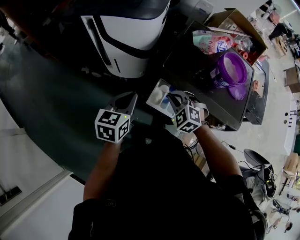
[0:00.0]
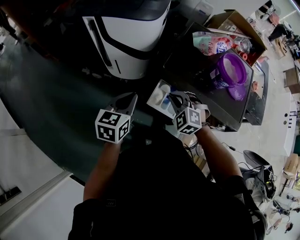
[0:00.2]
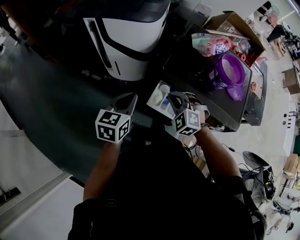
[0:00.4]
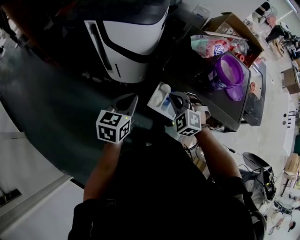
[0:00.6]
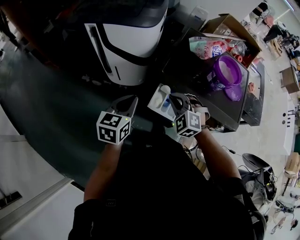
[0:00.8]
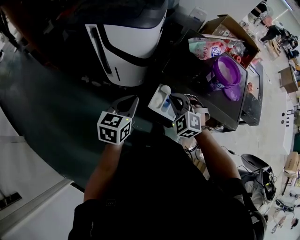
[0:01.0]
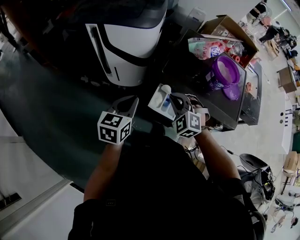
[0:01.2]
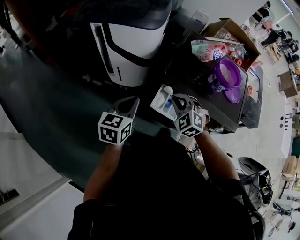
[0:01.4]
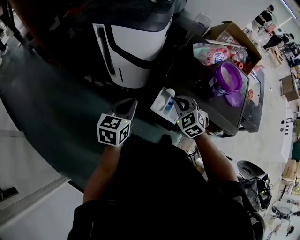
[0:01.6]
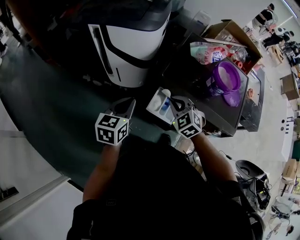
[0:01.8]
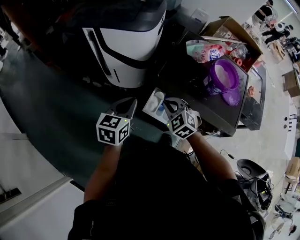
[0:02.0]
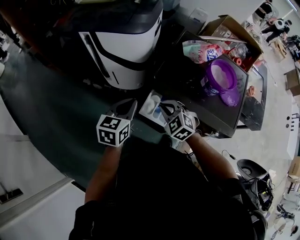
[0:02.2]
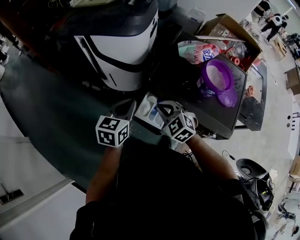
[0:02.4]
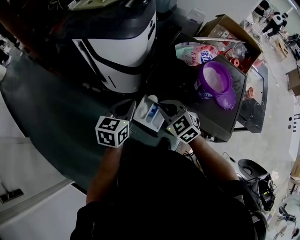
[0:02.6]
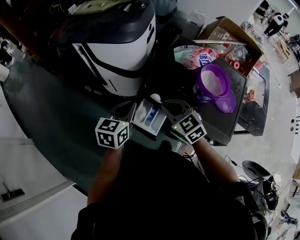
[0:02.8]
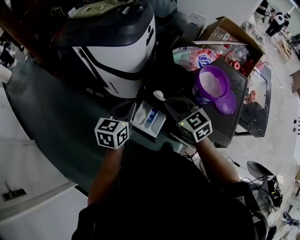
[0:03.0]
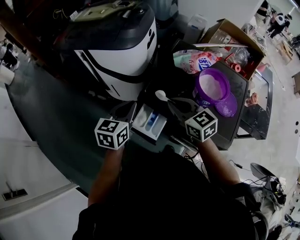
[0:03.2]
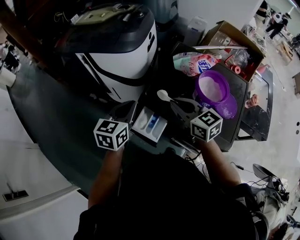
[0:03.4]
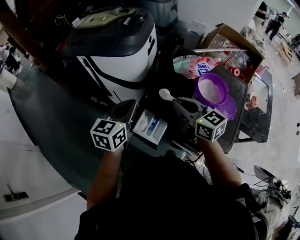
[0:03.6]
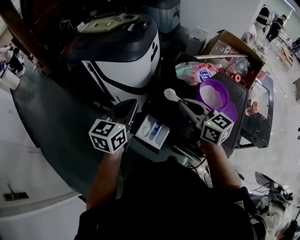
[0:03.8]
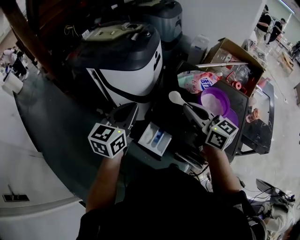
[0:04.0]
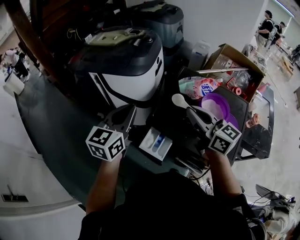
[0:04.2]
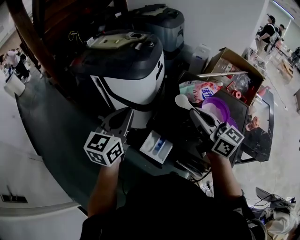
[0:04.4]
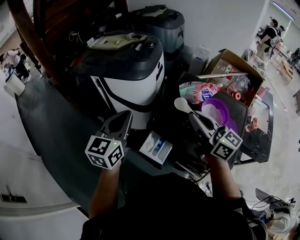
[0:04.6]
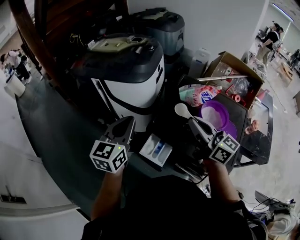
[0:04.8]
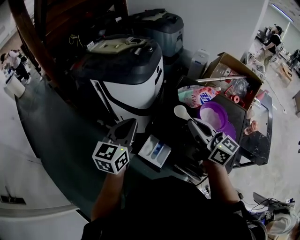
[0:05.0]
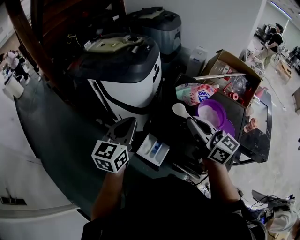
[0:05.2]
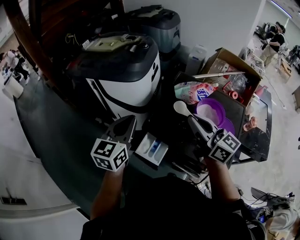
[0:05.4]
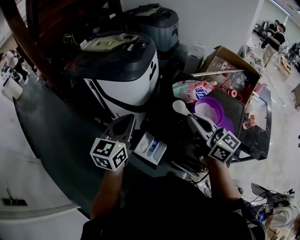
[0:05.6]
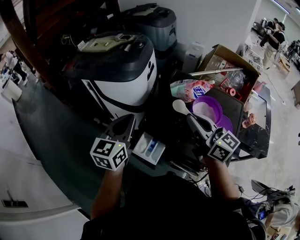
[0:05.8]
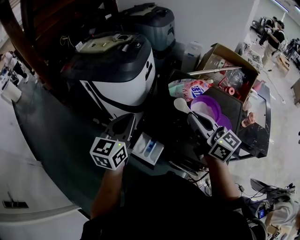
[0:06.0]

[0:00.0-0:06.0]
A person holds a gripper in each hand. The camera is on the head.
0:00.0 to 0:01.6: The grippers make only small movements.
0:01.6 to 0:03.0: The left gripper is displaced to the right and forward by approximately 15 cm, while the right gripper travels to the right and upward by about 10 cm, and rotates roughly 30 degrees.
0:03.0 to 0:04.4: The two grippers go roughly 15 cm upward. The right gripper tips its fingers upward by roughly 30 degrees.
0:04.4 to 0:06.0: Both grippers move to the right, approximately 5 cm.

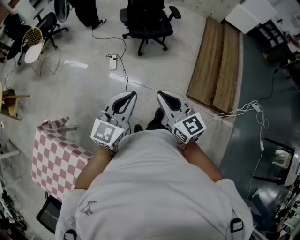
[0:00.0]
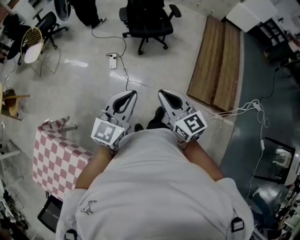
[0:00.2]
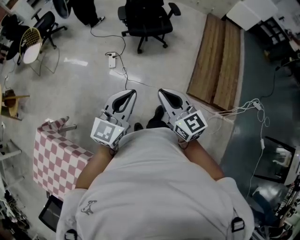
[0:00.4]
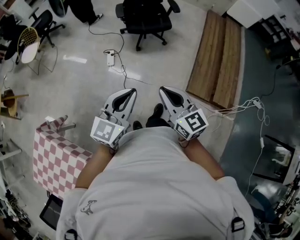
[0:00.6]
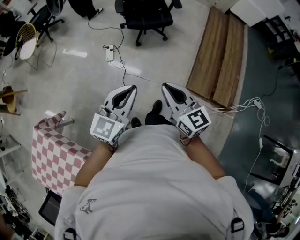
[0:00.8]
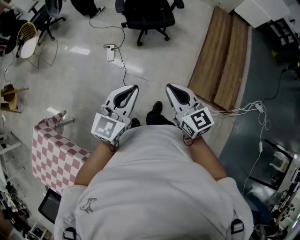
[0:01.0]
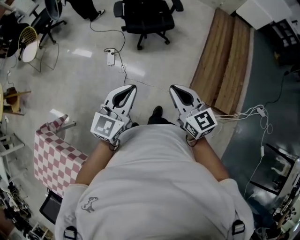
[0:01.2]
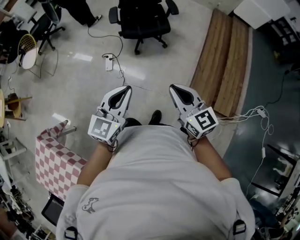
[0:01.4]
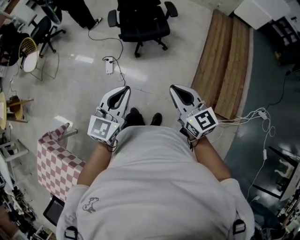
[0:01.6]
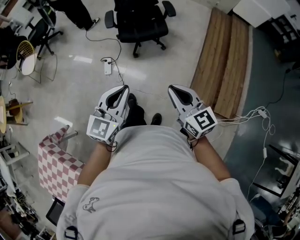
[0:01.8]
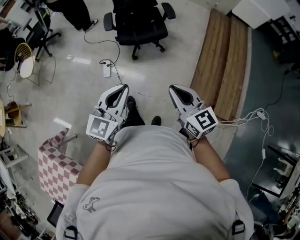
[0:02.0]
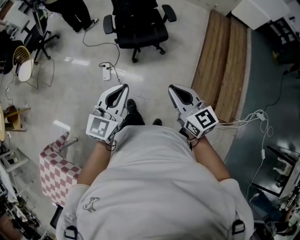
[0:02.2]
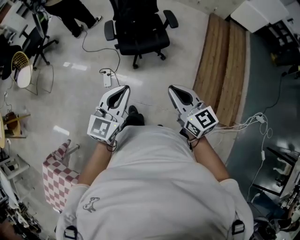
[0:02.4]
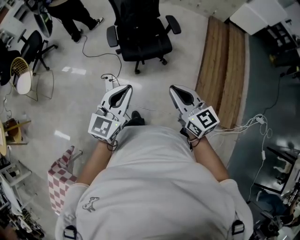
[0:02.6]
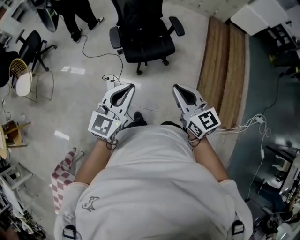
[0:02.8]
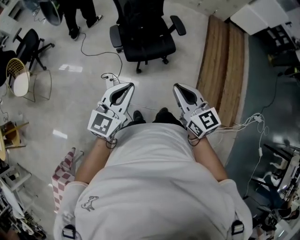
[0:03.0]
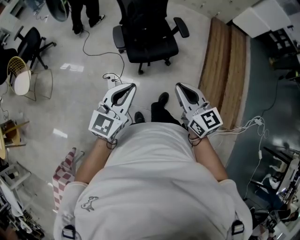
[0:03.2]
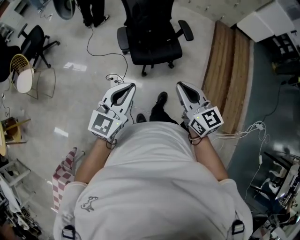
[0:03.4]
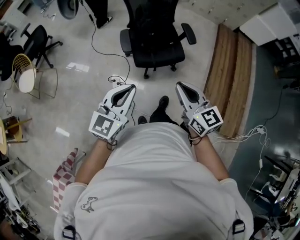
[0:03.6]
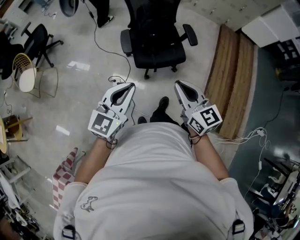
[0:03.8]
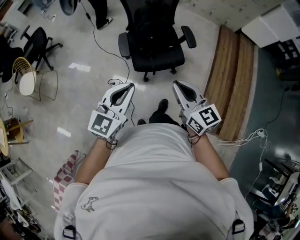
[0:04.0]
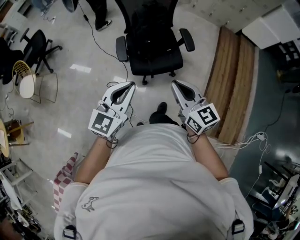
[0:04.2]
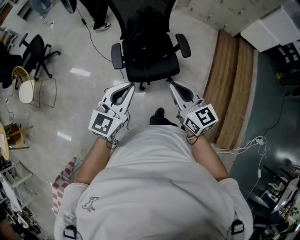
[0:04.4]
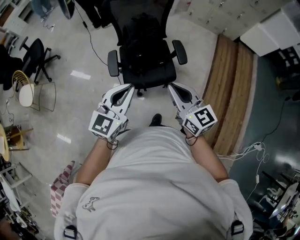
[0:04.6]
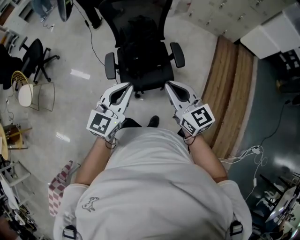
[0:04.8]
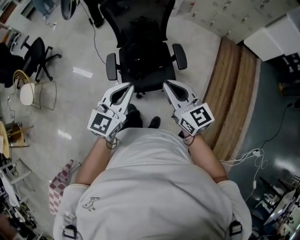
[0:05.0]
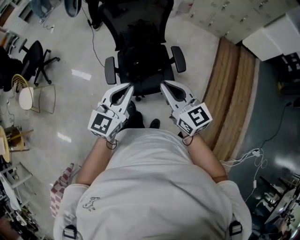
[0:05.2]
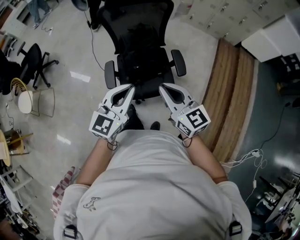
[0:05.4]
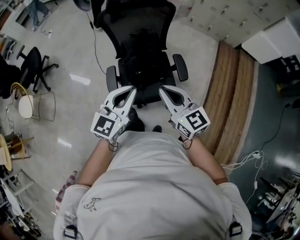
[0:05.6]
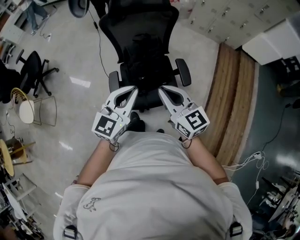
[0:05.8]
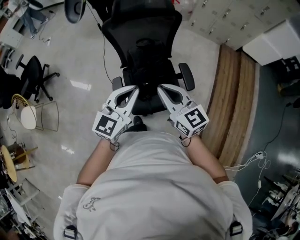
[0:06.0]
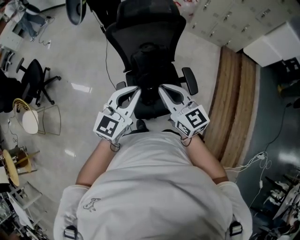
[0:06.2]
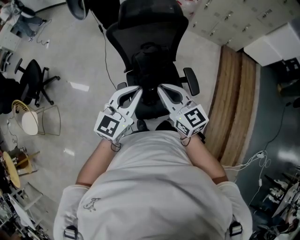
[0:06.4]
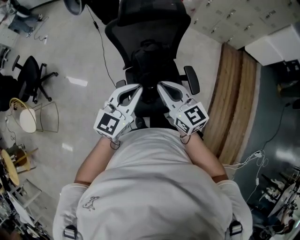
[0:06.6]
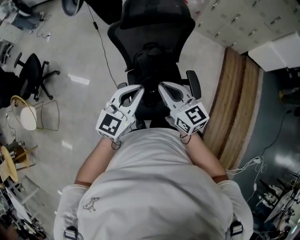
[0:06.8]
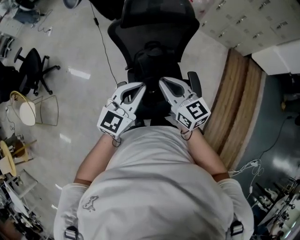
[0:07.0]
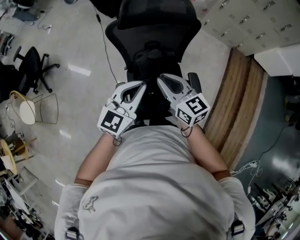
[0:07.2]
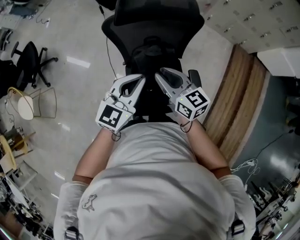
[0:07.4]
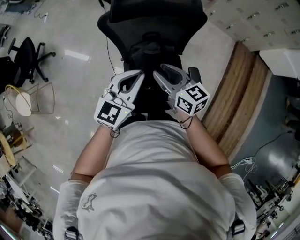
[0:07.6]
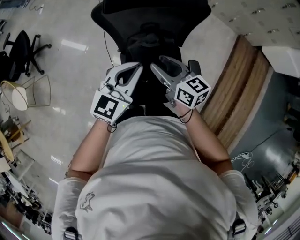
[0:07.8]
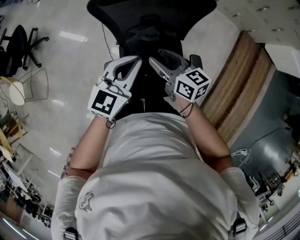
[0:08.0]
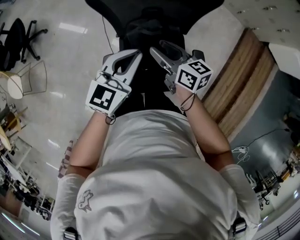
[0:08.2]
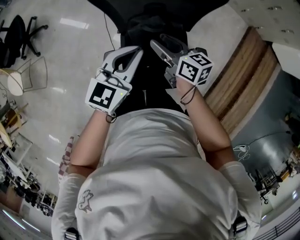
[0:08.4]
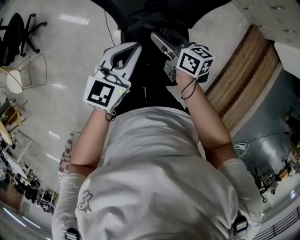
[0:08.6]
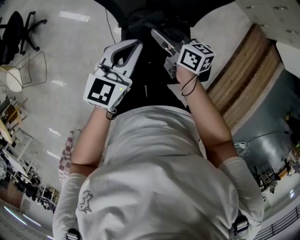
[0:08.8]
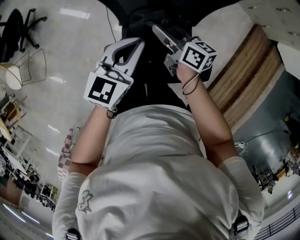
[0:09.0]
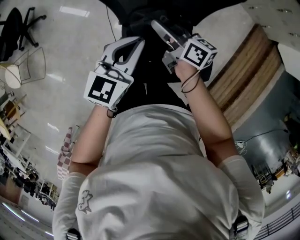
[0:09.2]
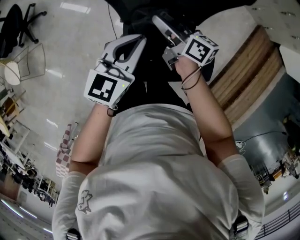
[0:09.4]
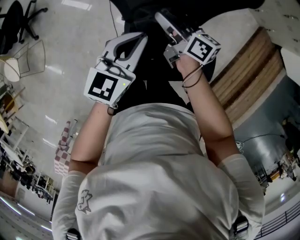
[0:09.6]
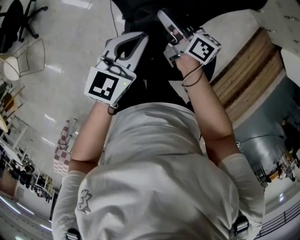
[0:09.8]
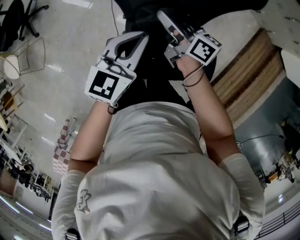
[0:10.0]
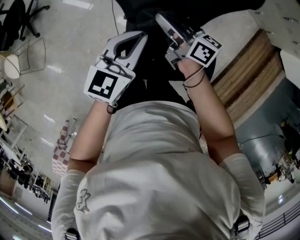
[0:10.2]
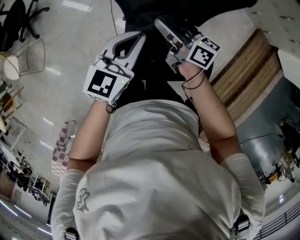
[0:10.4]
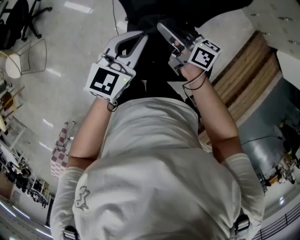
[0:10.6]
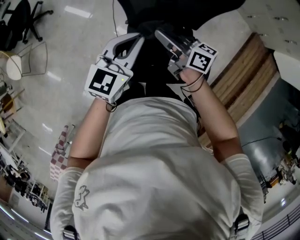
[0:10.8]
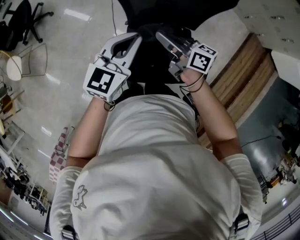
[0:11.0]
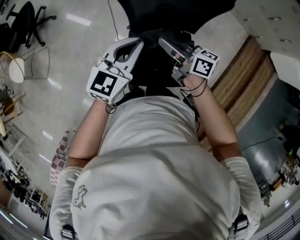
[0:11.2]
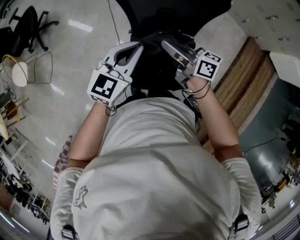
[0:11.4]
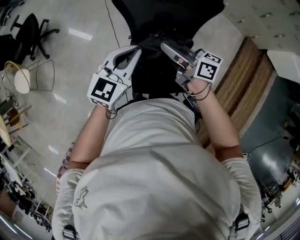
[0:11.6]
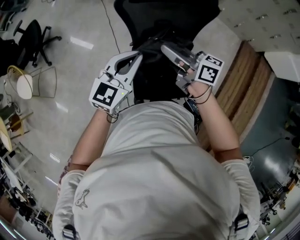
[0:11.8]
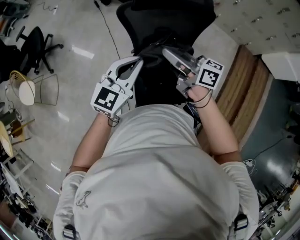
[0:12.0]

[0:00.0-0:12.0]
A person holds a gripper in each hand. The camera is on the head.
0:00.0 to 0:01.6: The right gripper moves to the right and forward, approximately 30 cm. Meanwhile the left gripper is displaced forward and to the right by approximately 25 cm.
0:01.6 to 0:03.0: The grippers both shift forward and to the left by about 30 cm.
0:03.0 to 0:04.4: Both grippers move forward, some 20 cm.
0:04.4 to 0:06.0: The grippers both shift forward by approximately 25 cm.
0:06.0 to 0:07.6: The right gripper moves forward and downward, about 25 cm, swivels approximately 20 degrees, and opens up, while the left gripper travels forward by some 20 cm.
0:07.6 to 0:09.0: The two grippers go roughly 15 cm downward and forward. The right gripper turns by about 20 degrees.
0:09.0 to 0:10.4: The right gripper shifts by roughly 5 cm, and closes up.
0:10.4 to 0:12.0: The right gripper shifts roughly 20 cm upward and backward. Meanwhile the left gripper goes approximately 15 cm upward, backward and to the left.

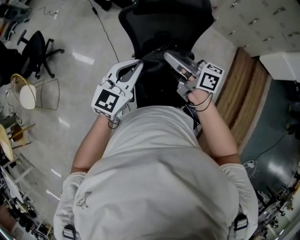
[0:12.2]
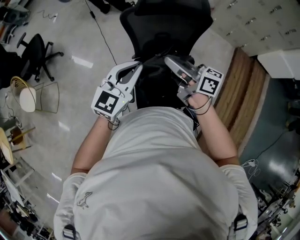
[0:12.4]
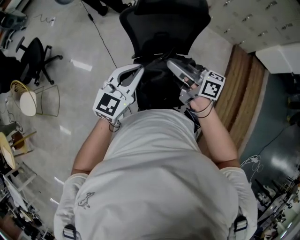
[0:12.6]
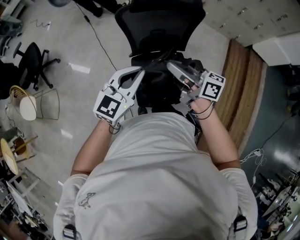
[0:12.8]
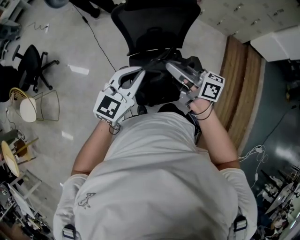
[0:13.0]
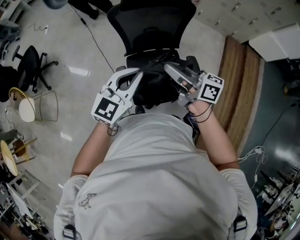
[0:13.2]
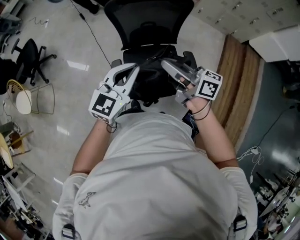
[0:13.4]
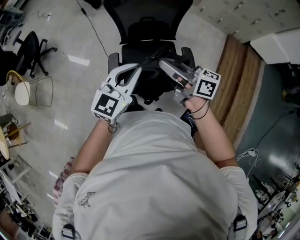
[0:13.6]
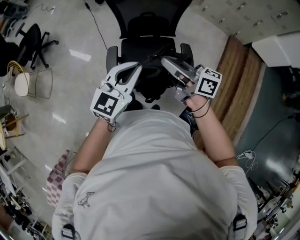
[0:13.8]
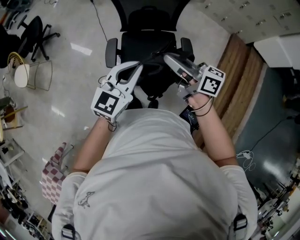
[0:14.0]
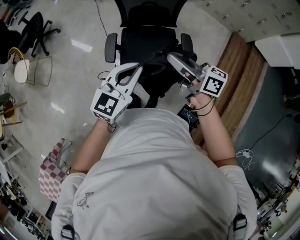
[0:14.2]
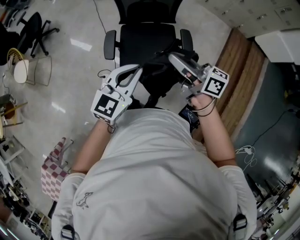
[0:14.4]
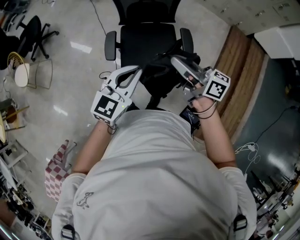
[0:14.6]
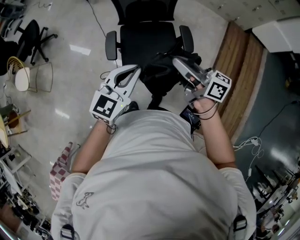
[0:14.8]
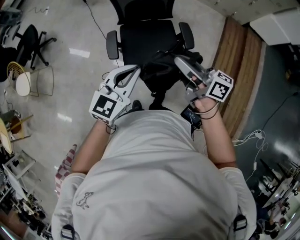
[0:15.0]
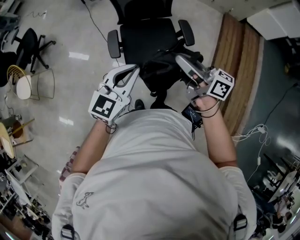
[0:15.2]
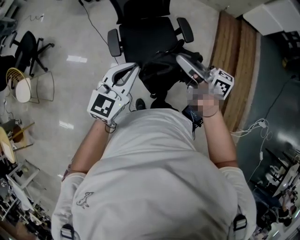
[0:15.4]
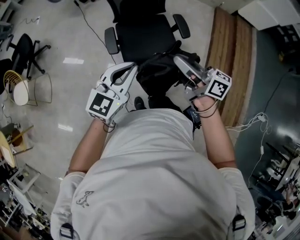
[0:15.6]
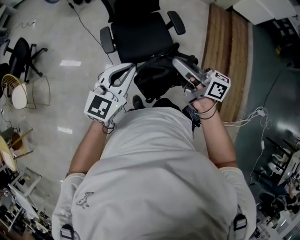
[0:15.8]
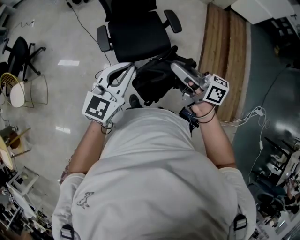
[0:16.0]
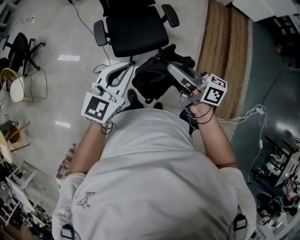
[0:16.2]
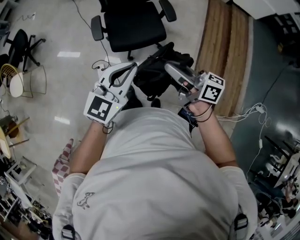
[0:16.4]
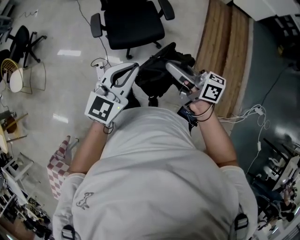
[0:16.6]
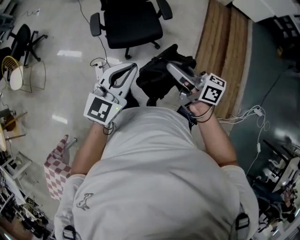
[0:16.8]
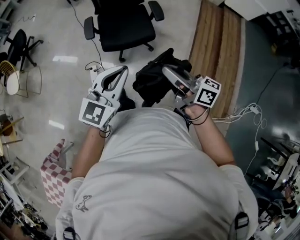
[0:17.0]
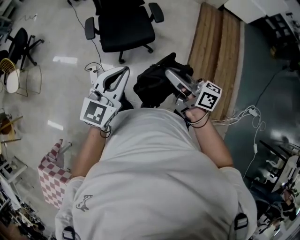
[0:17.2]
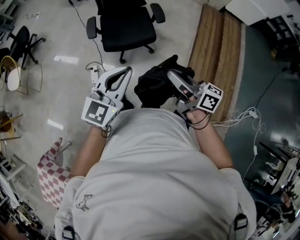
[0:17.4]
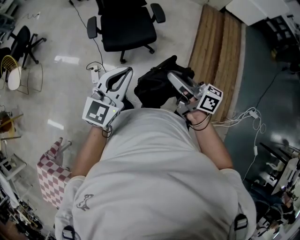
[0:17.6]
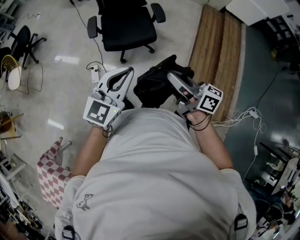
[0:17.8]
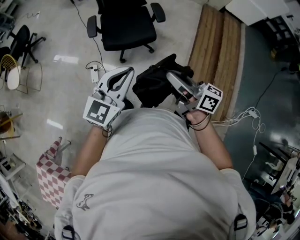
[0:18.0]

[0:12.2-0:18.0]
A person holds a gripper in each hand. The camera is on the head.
0:12.2 to 0:13.6: The left gripper goes some 20 cm backward and to the right, while the right gripper shifts about 20 cm backward.
0:13.6 to 0:15.0: The grippers both shift backward by approximately 15 cm.
0:15.0 to 0:16.6: Both grippers move backward, approximately 25 cm.
0:16.6 to 0:18.0: The two grippers go some 10 cm backward.
